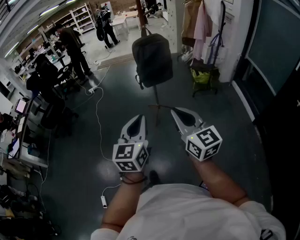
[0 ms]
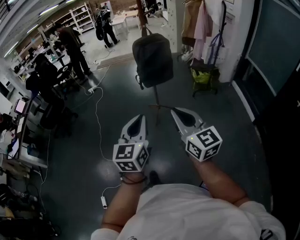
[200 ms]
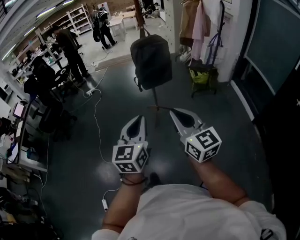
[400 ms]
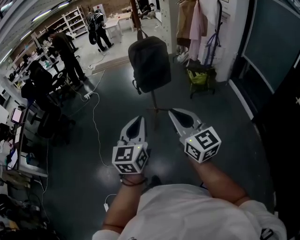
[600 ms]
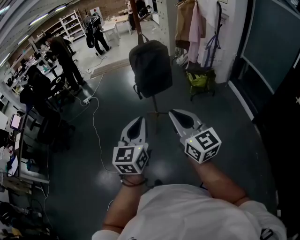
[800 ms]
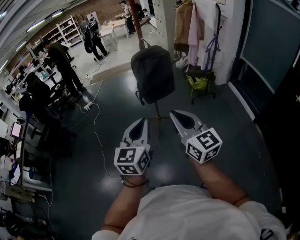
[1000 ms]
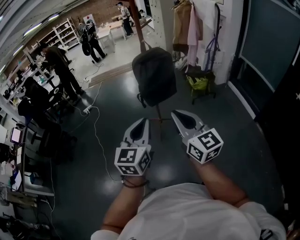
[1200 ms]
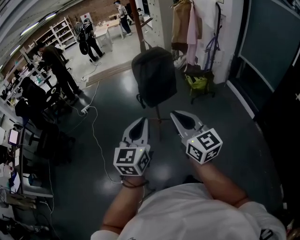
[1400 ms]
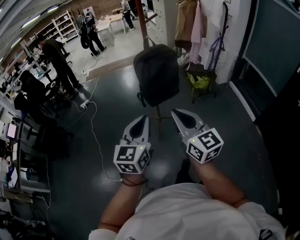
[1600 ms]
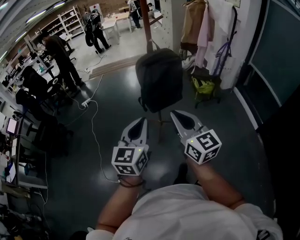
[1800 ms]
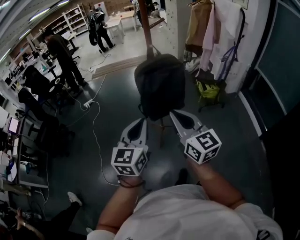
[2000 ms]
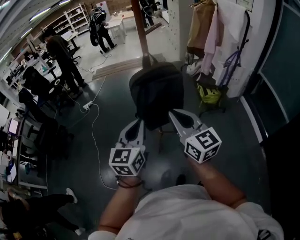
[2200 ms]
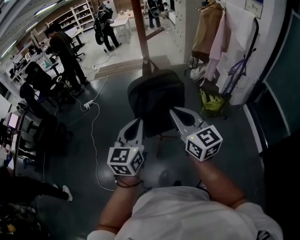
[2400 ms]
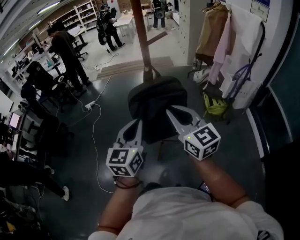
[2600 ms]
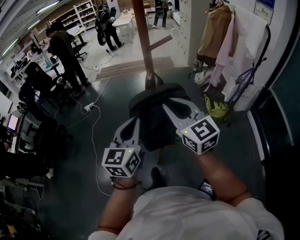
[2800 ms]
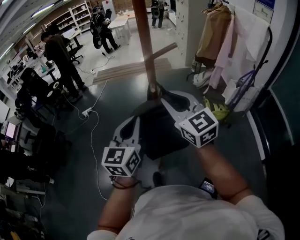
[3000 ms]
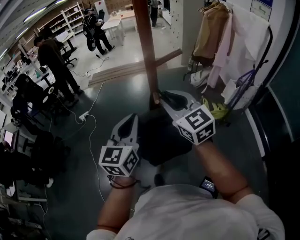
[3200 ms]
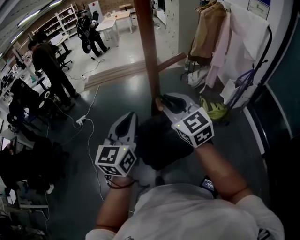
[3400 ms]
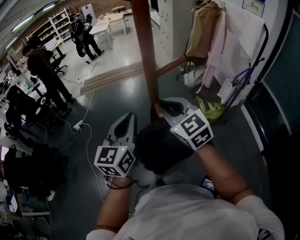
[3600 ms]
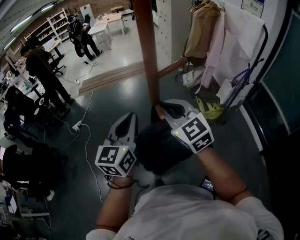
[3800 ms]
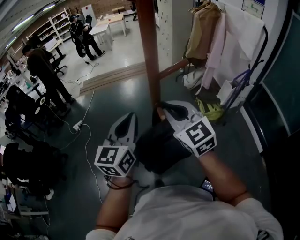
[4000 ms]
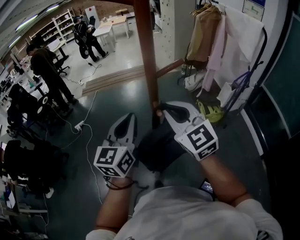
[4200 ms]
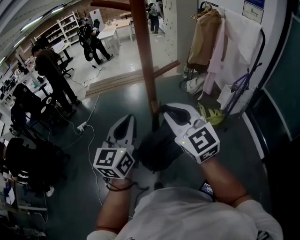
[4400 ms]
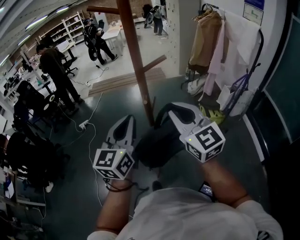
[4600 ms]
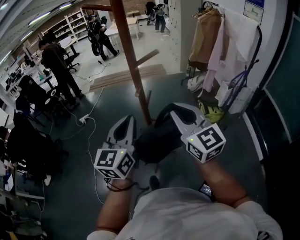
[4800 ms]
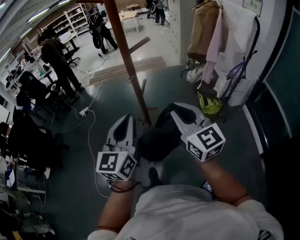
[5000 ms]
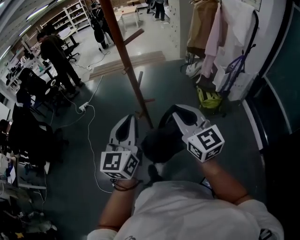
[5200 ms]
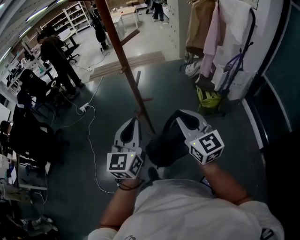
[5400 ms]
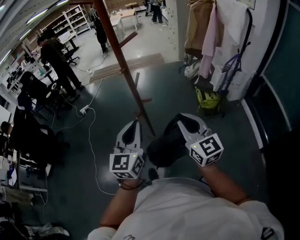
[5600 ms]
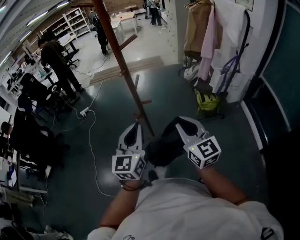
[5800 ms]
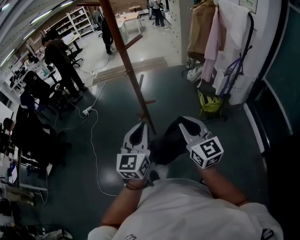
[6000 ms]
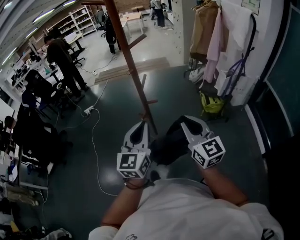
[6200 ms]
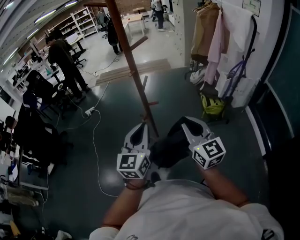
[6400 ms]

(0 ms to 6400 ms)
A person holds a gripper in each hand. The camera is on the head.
0 ms - 1600 ms: Both grippers move forward, approximately 25 cm.
1600 ms - 3200 ms: The pair of grippers is taken forward, about 50 cm. The right gripper swivels about 20 degrees.
3200 ms - 4800 ms: The right gripper goes some 15 cm backward and to the right; the left gripper is displaced backward by some 10 cm.
4800 ms - 6400 ms: Both grippers travel together backward, downward and to the right, about 15 cm.

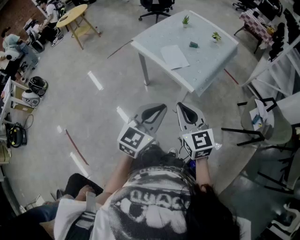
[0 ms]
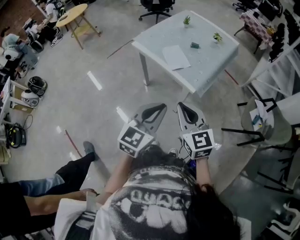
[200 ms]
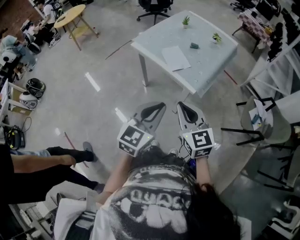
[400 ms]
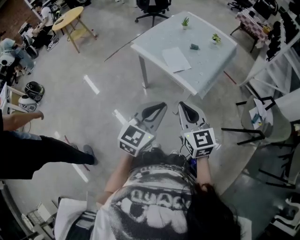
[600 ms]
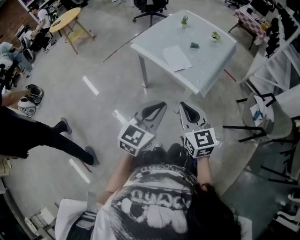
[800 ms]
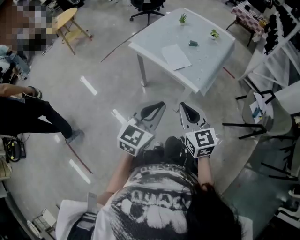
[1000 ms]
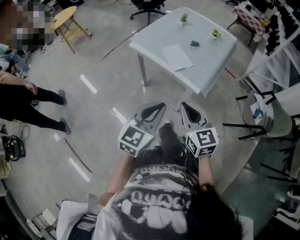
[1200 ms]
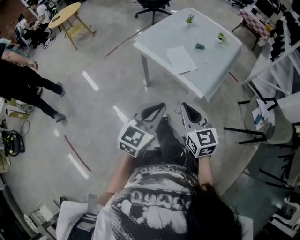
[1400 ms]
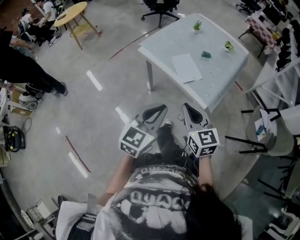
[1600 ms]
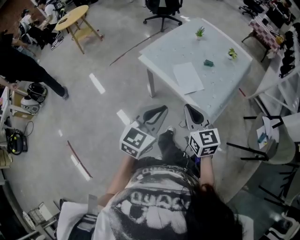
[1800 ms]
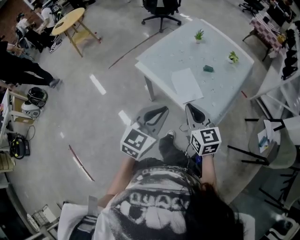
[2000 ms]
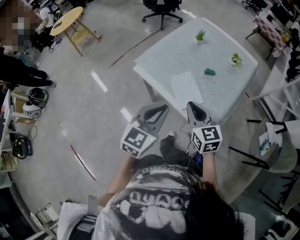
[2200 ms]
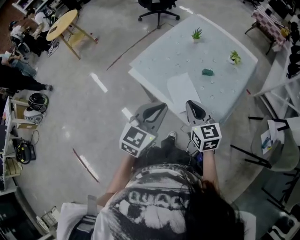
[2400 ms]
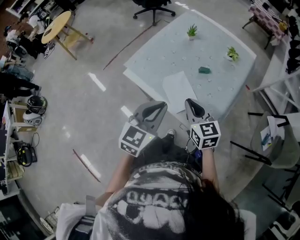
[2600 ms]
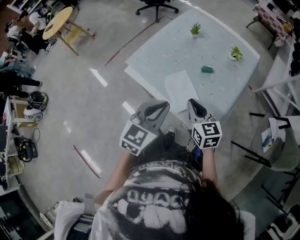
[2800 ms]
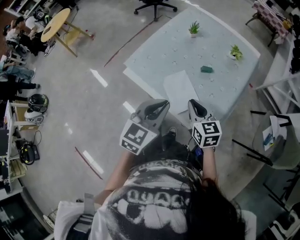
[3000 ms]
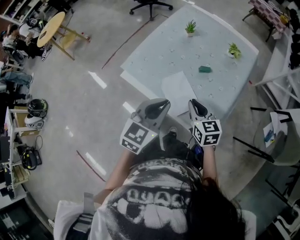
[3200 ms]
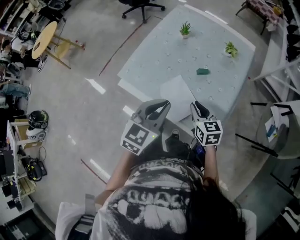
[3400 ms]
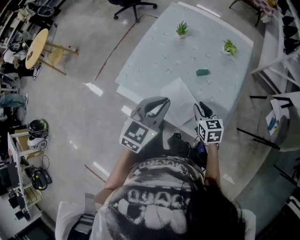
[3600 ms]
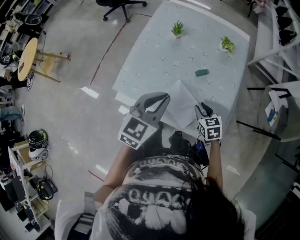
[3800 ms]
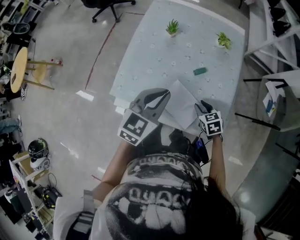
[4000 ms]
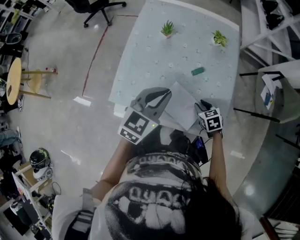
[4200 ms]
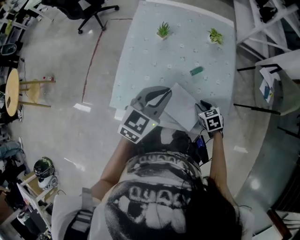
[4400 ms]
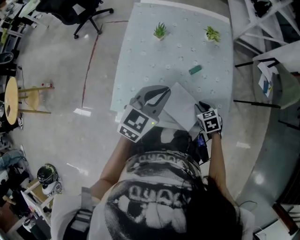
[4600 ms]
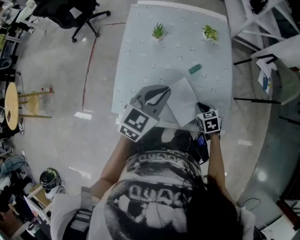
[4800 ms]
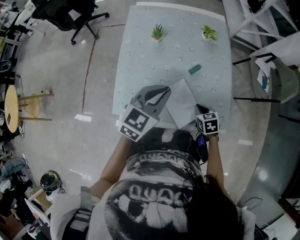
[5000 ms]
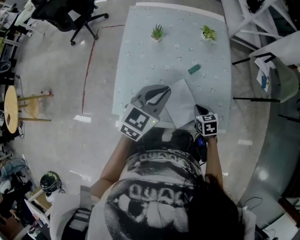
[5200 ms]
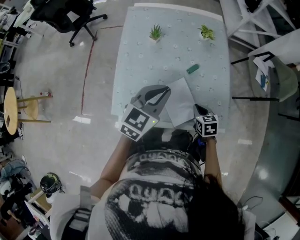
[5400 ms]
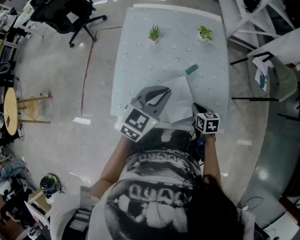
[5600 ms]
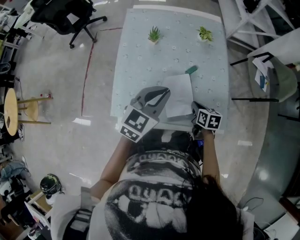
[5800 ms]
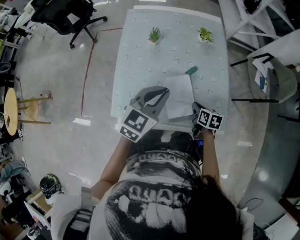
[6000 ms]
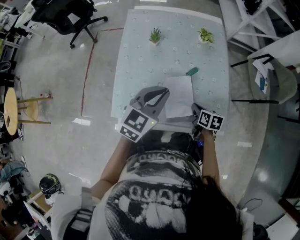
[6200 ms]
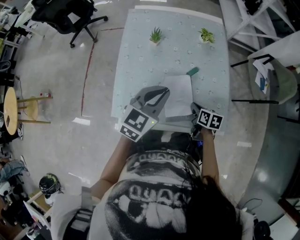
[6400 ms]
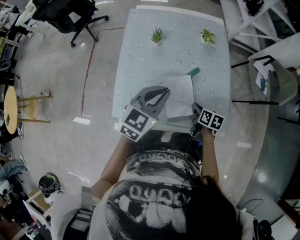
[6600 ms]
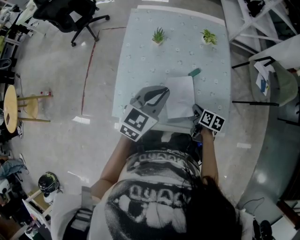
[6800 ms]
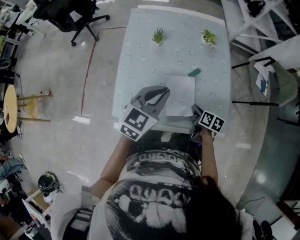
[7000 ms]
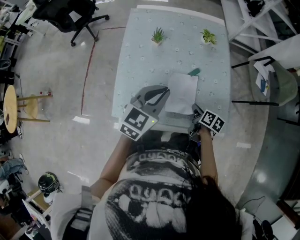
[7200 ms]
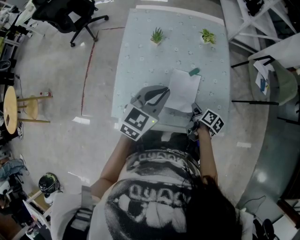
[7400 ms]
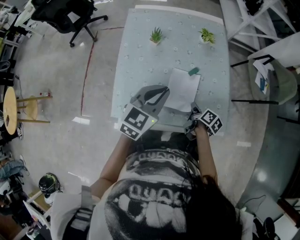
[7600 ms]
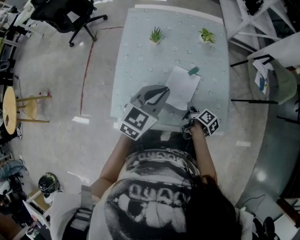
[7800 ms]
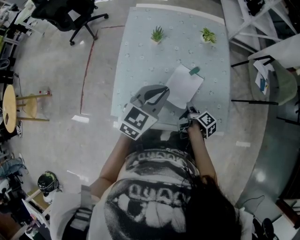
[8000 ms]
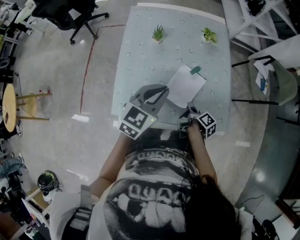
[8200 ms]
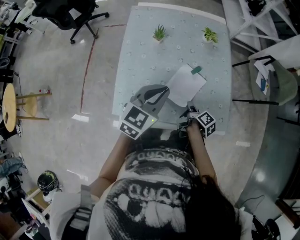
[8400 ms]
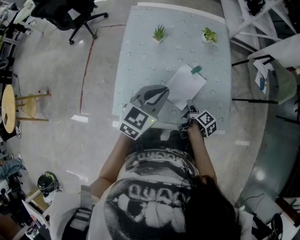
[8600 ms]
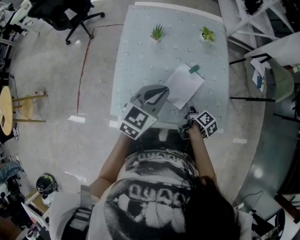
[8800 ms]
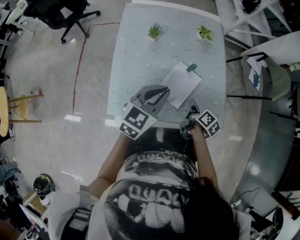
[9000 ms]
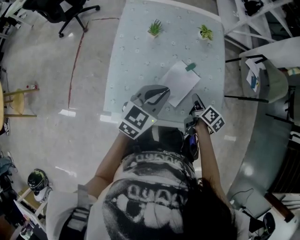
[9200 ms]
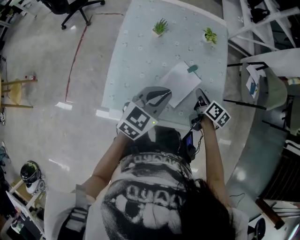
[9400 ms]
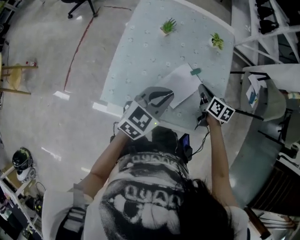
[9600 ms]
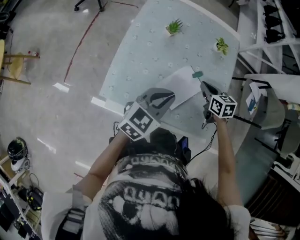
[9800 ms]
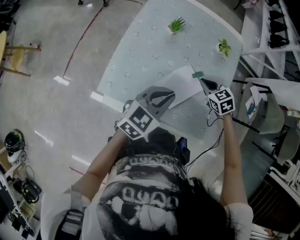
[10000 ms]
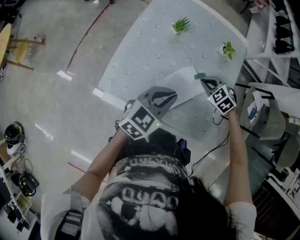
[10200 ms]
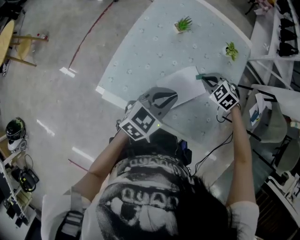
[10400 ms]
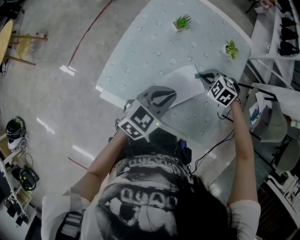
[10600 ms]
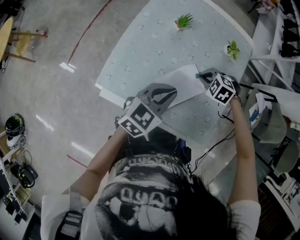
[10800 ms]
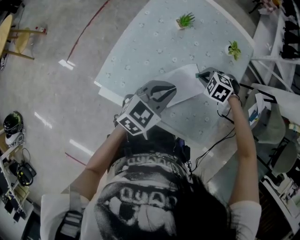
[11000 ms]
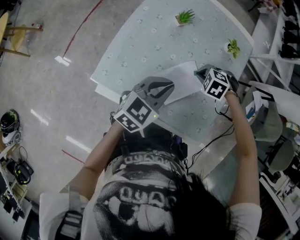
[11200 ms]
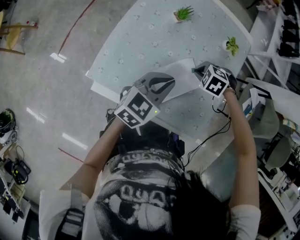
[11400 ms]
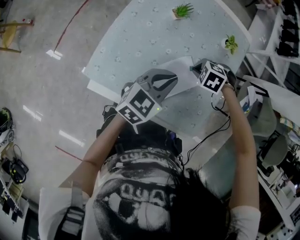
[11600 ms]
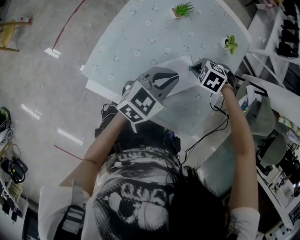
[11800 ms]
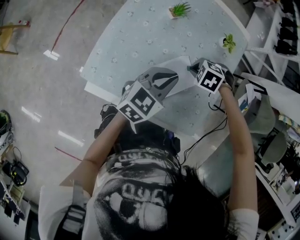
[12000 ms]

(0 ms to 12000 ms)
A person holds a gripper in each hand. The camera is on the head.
0 ms - 1600 ms: Both grippers travel together forward and to the left, approximately 15 cm.
1600 ms - 3000 ms: The grippers both shift forward by some 30 cm.
3000 ms - 4400 ms: The right gripper shifts roughly 15 cm downward, angles its fingers downward, by about 40 degrees, and opens its fingers; the left gripper ends up some 20 cm from where it was, and changes its angle by roughly 30 degrees.
4400 ms - 6000 ms: The right gripper rolls clockwise, seen from behind, by some 40 degrees, and closes up.
6000 ms - 7600 ms: The right gripper changes its angle by roughly 40 degrees.
9000 ms - 10400 ms: The right gripper moves about 15 cm, and twists approximately 120 degrees counterclockwise, seen from behind.
10400 ms - 12000 ms: The left gripper shifts by roughly 5 cm, while the right gripper swivels about 30 degrees.

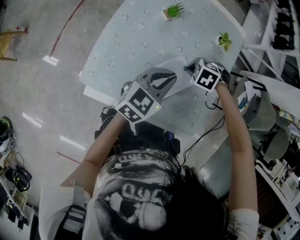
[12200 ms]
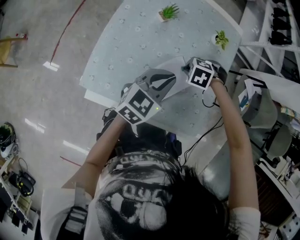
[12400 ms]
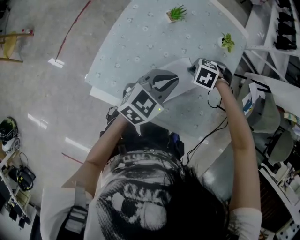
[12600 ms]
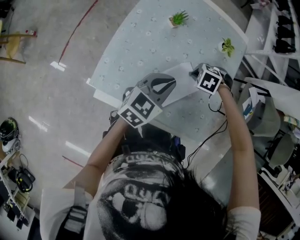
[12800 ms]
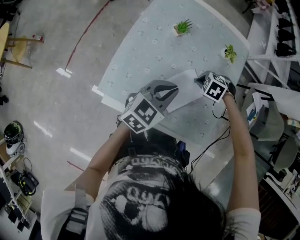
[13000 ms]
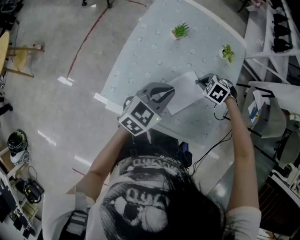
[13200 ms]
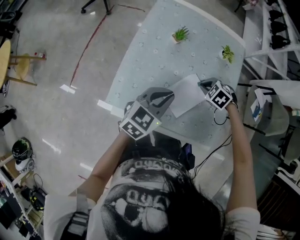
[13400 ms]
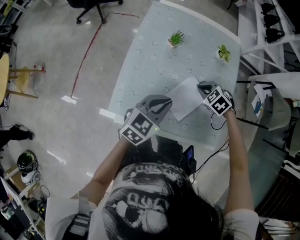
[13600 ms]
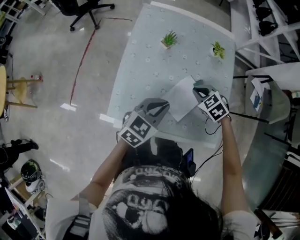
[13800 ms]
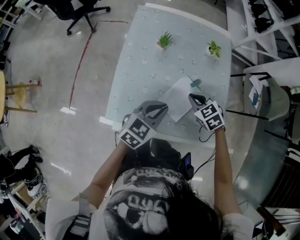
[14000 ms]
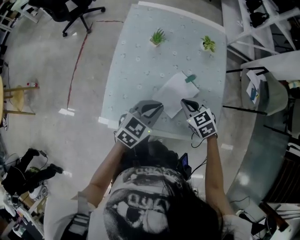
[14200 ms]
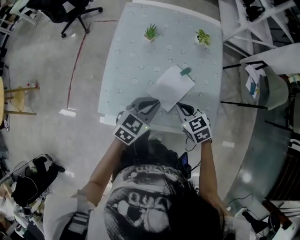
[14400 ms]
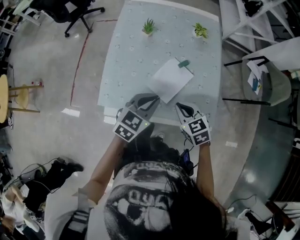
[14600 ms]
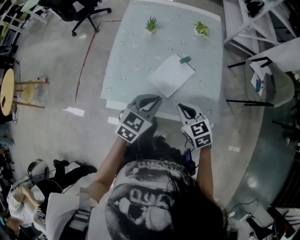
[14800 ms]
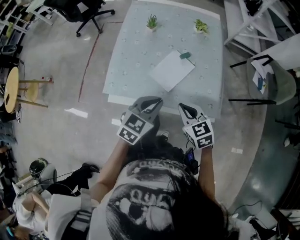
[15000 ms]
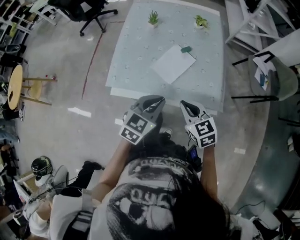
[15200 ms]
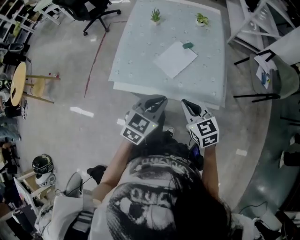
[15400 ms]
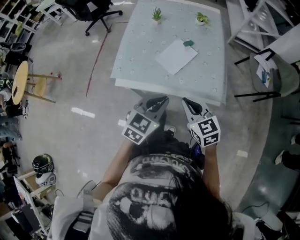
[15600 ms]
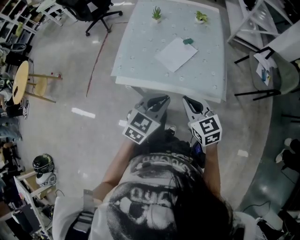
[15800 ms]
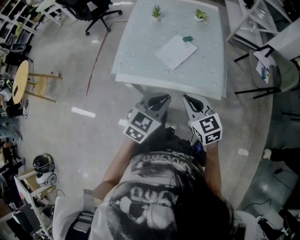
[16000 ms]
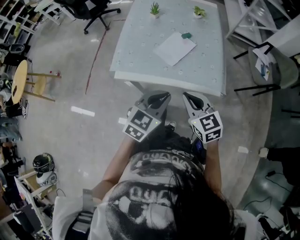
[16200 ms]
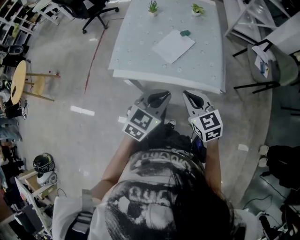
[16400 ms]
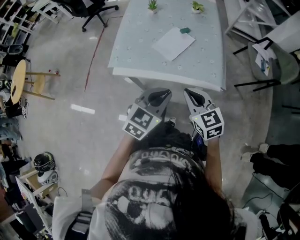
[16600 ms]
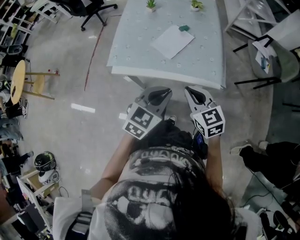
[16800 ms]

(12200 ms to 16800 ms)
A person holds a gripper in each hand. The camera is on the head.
12200 ms - 13800 ms: The right gripper travels upward by about 5 cm, and rotates roughly 50 degrees, while the left gripper changes place by approximately 10 cm.
13800 ms - 15200 ms: The left gripper moves backward and to the right, about 20 cm, while the right gripper shifts some 25 cm backward, and turns by some 40 degrees.
15200 ms - 16800 ms: Both grippers travel together backward, roughly 10 cm.

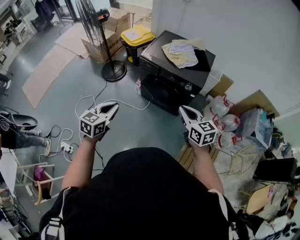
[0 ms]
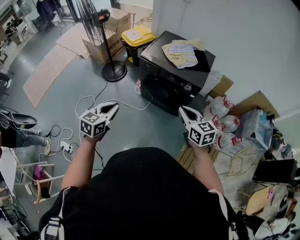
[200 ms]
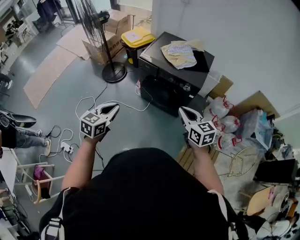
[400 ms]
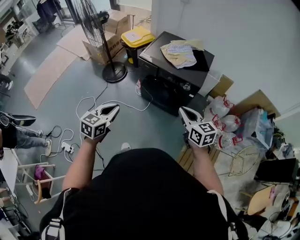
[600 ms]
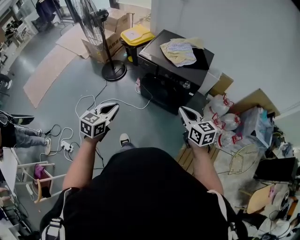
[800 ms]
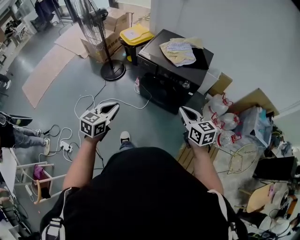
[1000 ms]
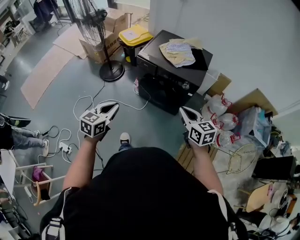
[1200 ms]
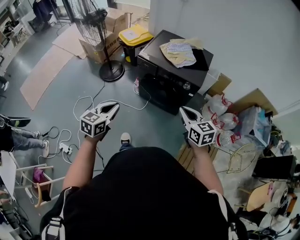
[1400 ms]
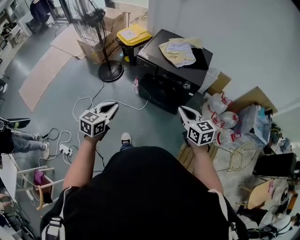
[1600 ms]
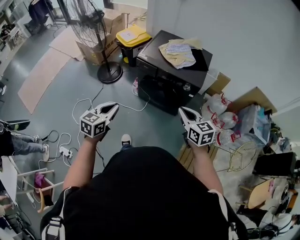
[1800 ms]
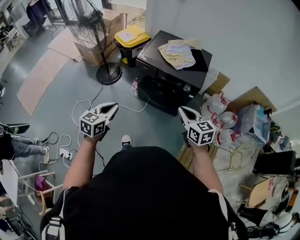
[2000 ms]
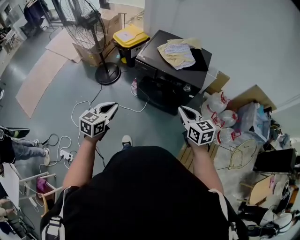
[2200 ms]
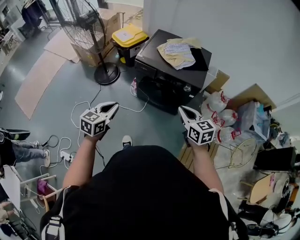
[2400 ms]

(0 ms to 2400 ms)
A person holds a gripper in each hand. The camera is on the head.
0 ms - 1200 ms: The grippers move only a little.
1200 ms - 2400 ms: Both grippers move forward, approximately 5 cm.
